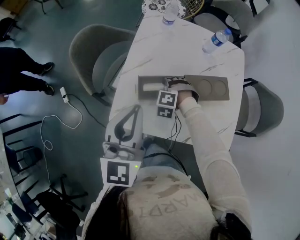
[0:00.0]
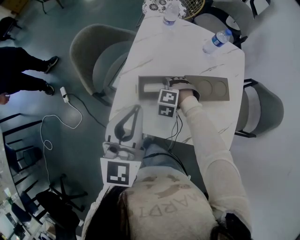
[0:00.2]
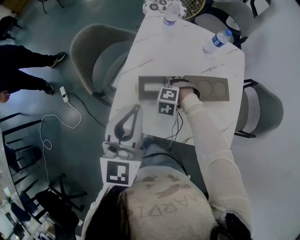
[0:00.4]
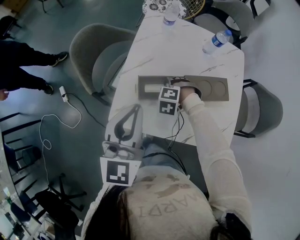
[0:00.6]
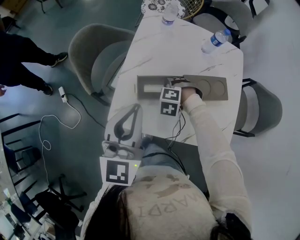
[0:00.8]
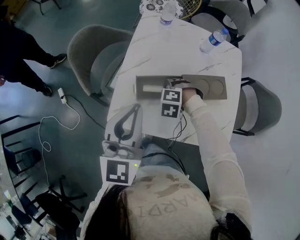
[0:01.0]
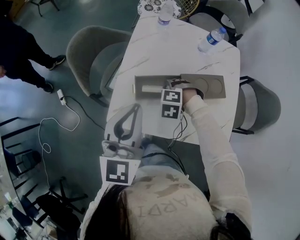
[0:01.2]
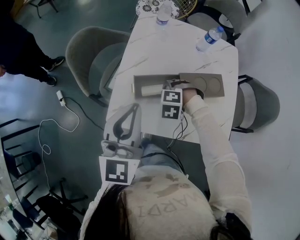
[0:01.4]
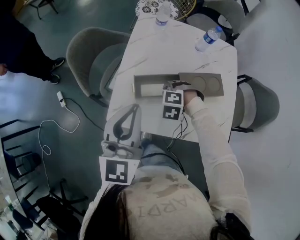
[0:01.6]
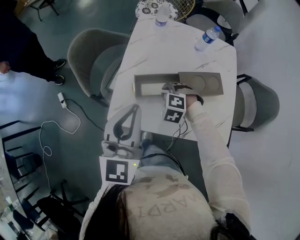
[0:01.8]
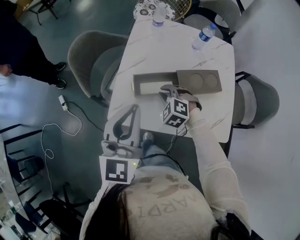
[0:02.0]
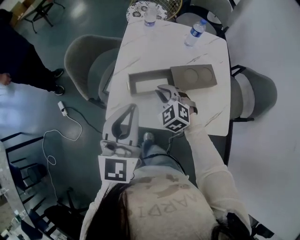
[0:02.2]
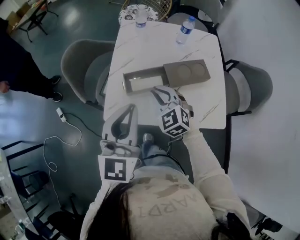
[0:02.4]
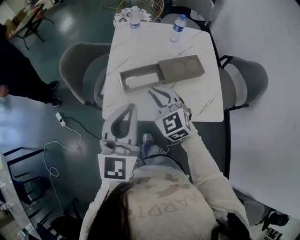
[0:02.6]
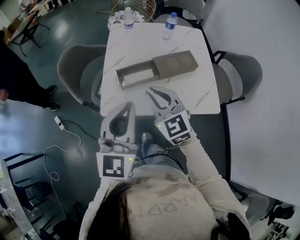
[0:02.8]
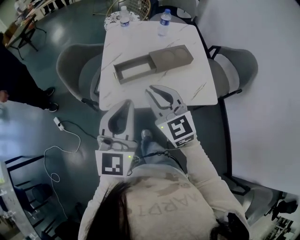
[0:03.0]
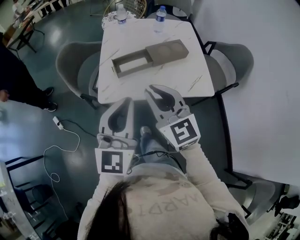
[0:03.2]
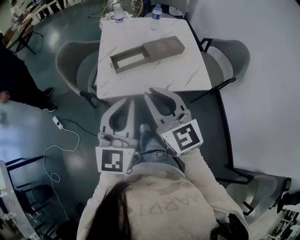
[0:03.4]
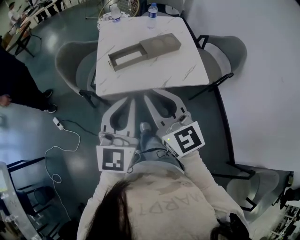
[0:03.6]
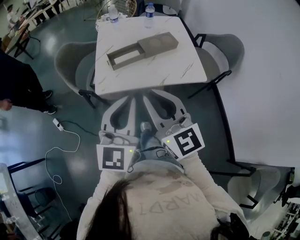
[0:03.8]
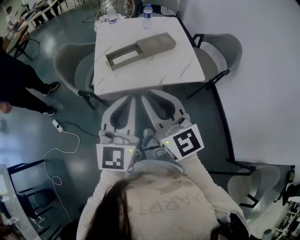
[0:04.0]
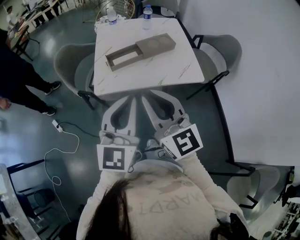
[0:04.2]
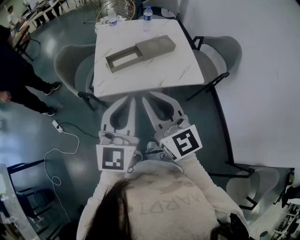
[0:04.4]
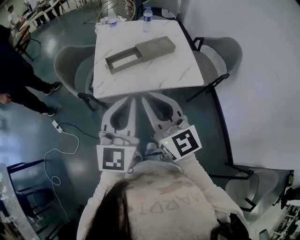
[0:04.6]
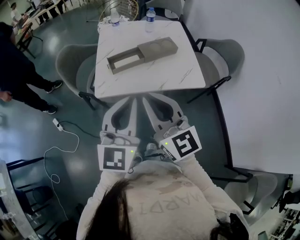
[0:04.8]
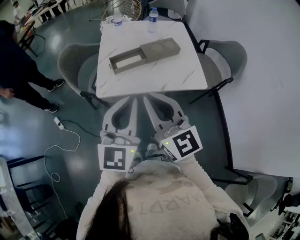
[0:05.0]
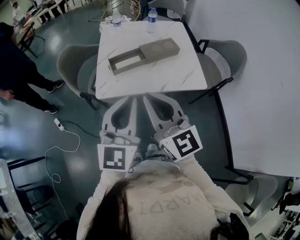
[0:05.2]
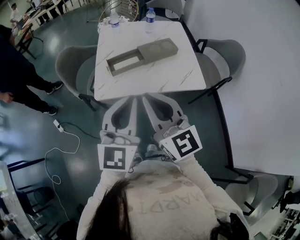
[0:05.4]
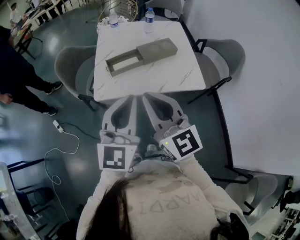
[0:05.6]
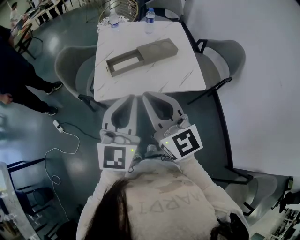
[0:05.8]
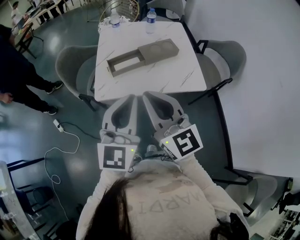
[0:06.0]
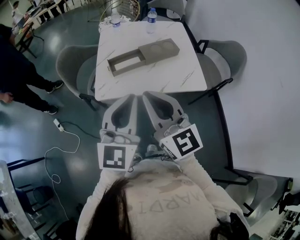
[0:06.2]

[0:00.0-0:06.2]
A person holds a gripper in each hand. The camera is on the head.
0.0 to 1.6 s: The right gripper changes place by approximately 5 cm.
1.6 to 3.2 s: The left gripper travels backward by roughly 20 cm. The right gripper moves backward and upward, approximately 35 cm, and tilts its fingers about 70 degrees upward.
3.2 to 4.6 s: The grippers both shift backward by approximately 10 cm.
4.6 to 6.2 s: The grippers make only small movements.

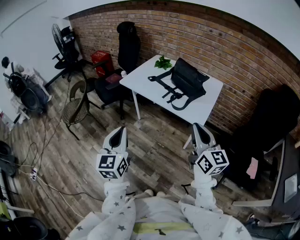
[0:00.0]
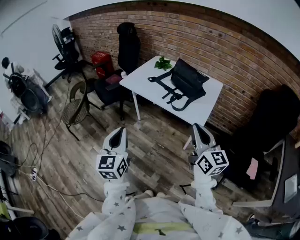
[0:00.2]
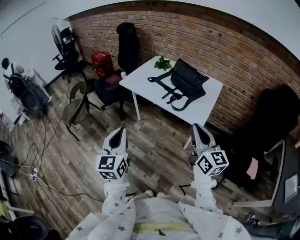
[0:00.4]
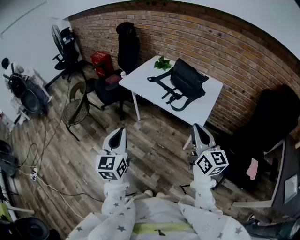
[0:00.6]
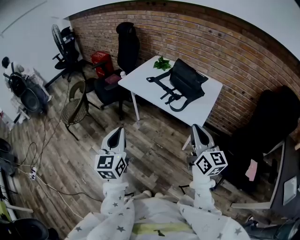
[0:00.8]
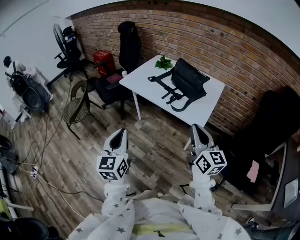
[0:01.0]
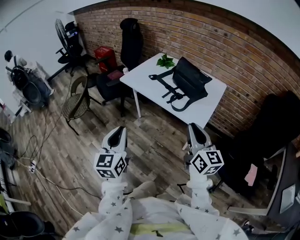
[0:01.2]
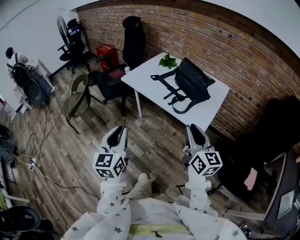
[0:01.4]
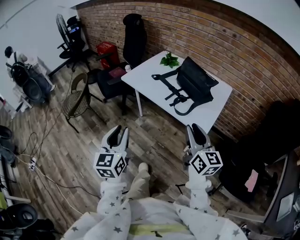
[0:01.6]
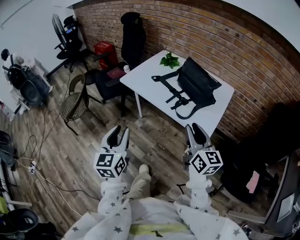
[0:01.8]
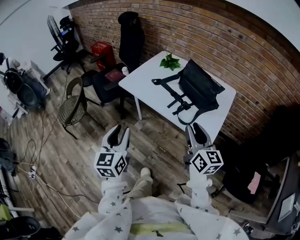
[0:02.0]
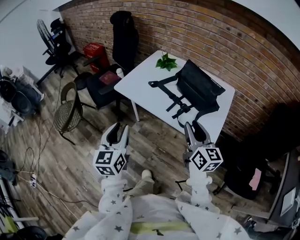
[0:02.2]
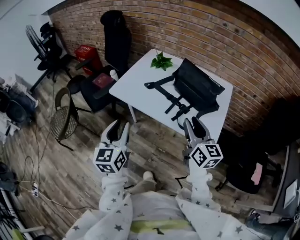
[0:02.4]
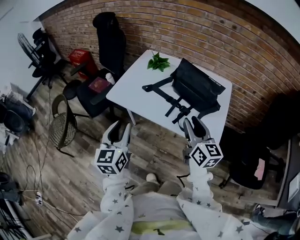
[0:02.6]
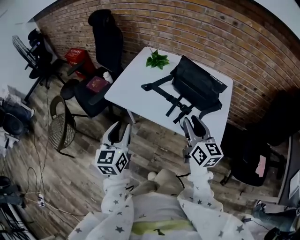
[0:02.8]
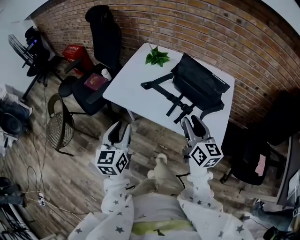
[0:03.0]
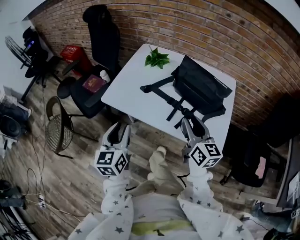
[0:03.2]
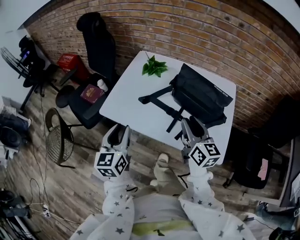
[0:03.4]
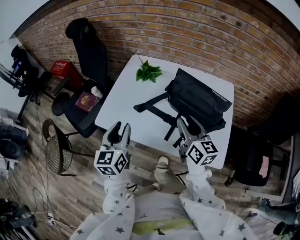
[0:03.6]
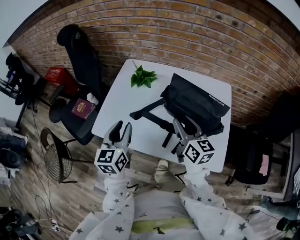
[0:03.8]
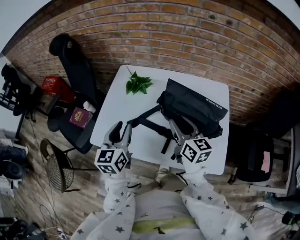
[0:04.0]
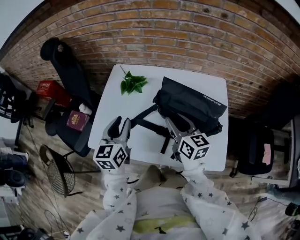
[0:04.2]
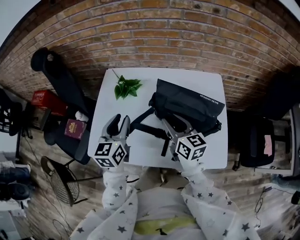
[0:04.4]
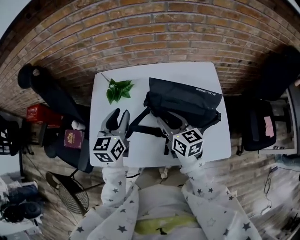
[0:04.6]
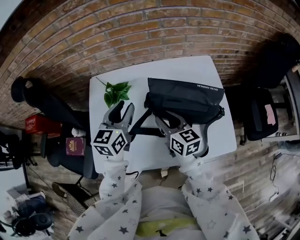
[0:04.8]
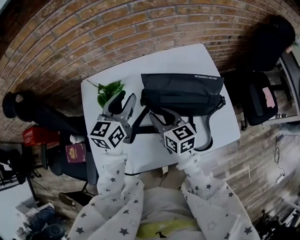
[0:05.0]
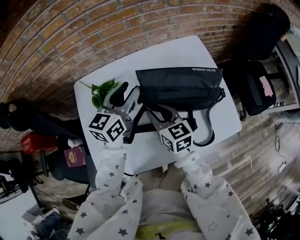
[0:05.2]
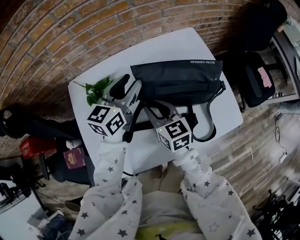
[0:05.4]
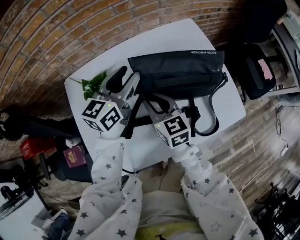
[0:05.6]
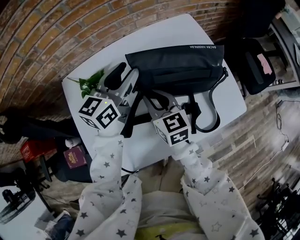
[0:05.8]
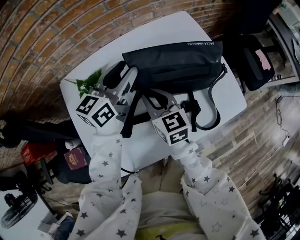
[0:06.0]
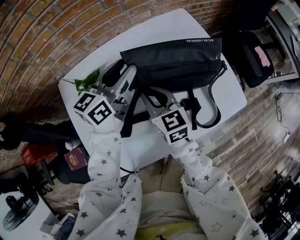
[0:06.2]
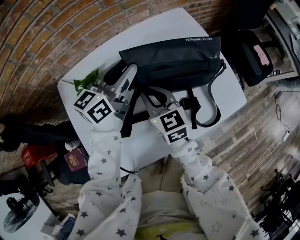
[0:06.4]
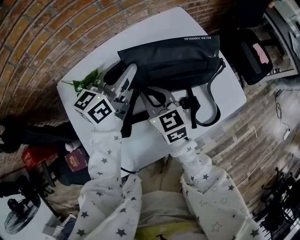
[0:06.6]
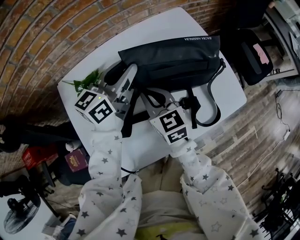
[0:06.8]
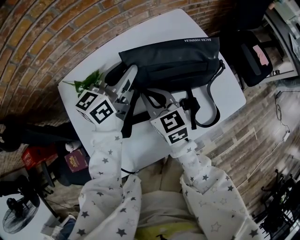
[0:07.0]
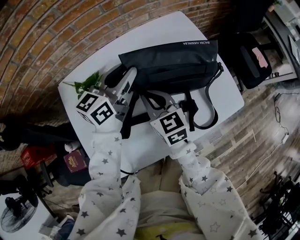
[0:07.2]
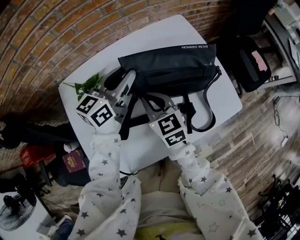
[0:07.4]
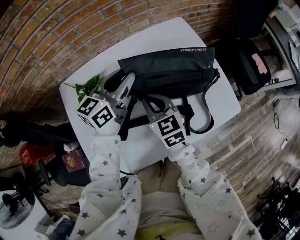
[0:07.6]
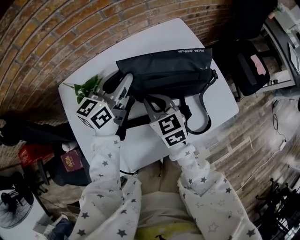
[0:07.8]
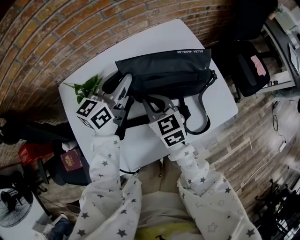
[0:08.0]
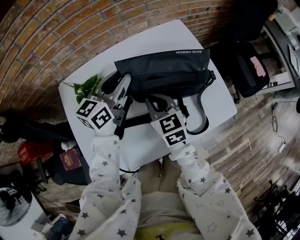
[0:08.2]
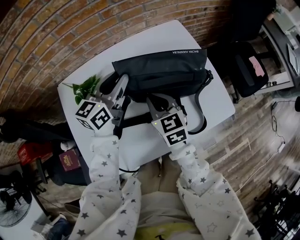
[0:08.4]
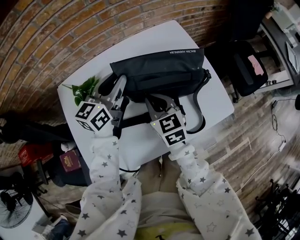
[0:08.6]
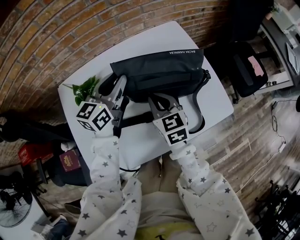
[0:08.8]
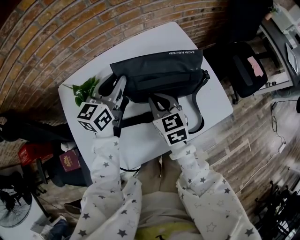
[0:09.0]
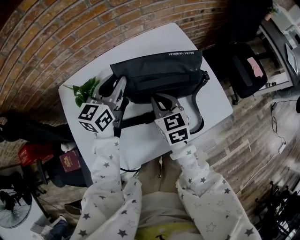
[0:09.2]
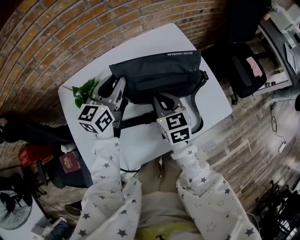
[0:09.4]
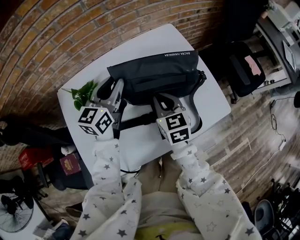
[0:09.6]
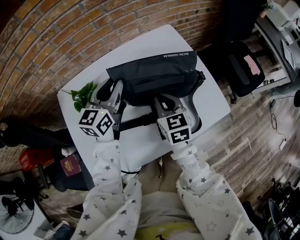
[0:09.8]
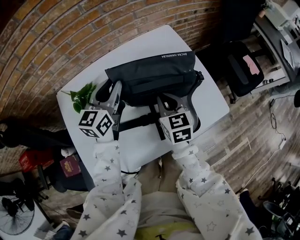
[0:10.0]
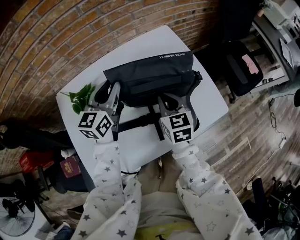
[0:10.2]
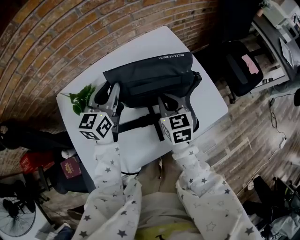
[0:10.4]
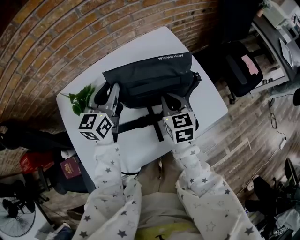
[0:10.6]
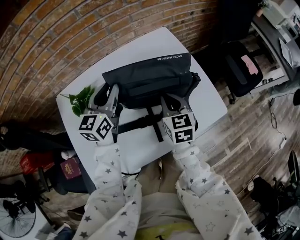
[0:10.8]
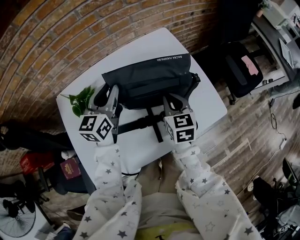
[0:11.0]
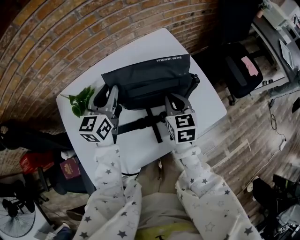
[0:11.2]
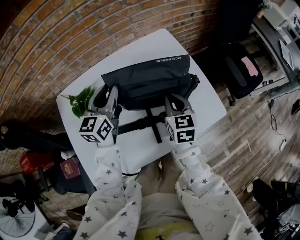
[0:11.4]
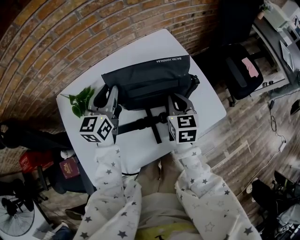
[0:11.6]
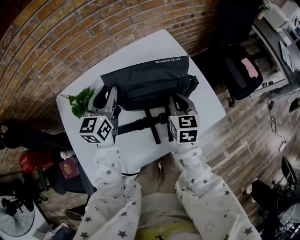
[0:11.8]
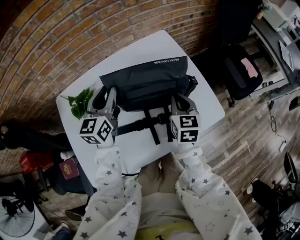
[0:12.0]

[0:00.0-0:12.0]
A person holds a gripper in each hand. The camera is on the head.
0.0 to 1.6 s: The two grippers go some 10 cm forward. The left gripper opens up, while the right gripper opens its fingers.
1.6 to 3.0 s: The two grippers go roughly 25 cm forward.
3.0 to 4.4 s: The two grippers go roughly 25 cm forward. The left gripper swivels roughly 20 degrees.
4.4 to 6.0 s: The left gripper moves approximately 20 cm, and turns by approximately 50 degrees. The right gripper is displaced downward by approximately 10 cm, and changes its angle by roughly 30 degrees.
6.0 to 7.6 s: Both grippers move to the right, roughly 5 cm.
7.6 to 9.0 s: The grippers stay close to where they were, moving slightly.
9.0 to 10.4 s: The right gripper moves to the right, roughly 5 cm.
10.4 to 12.0 s: The right gripper goes about 10 cm to the right.

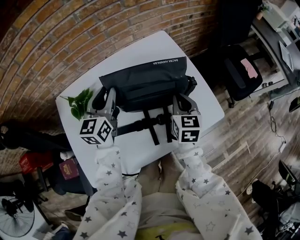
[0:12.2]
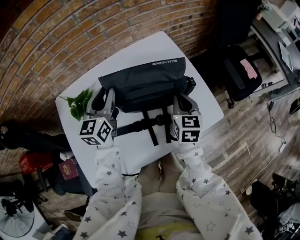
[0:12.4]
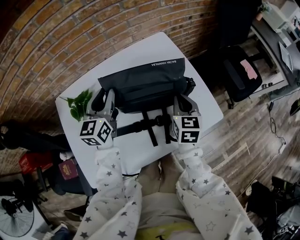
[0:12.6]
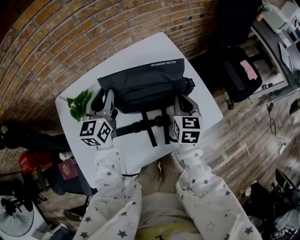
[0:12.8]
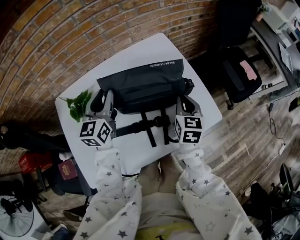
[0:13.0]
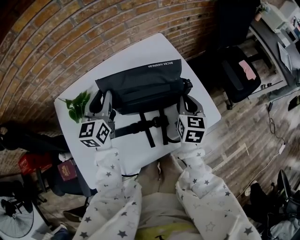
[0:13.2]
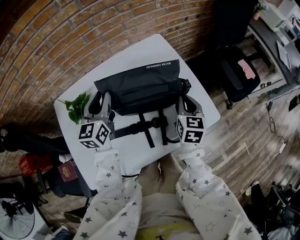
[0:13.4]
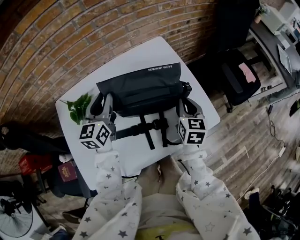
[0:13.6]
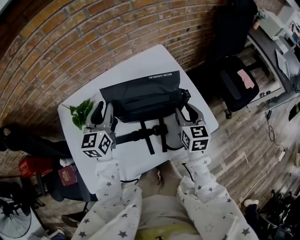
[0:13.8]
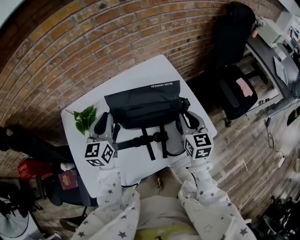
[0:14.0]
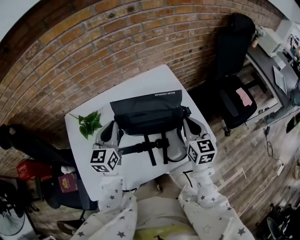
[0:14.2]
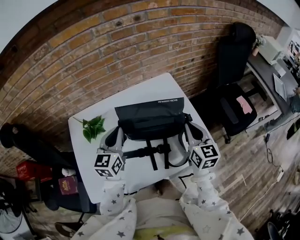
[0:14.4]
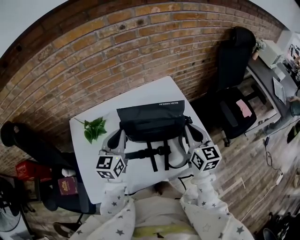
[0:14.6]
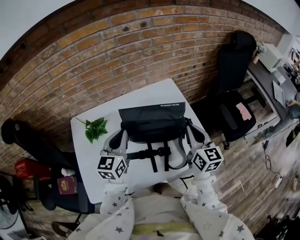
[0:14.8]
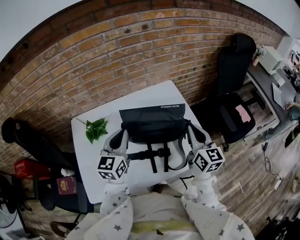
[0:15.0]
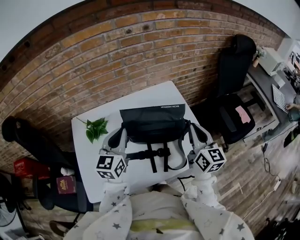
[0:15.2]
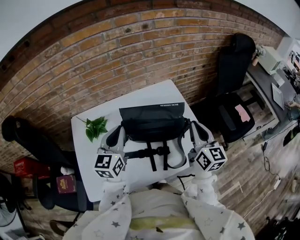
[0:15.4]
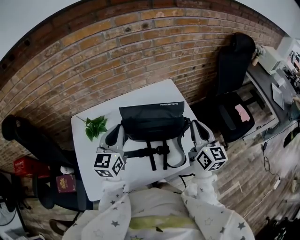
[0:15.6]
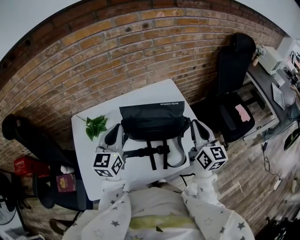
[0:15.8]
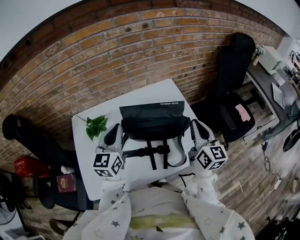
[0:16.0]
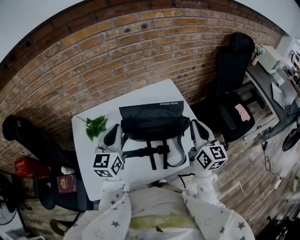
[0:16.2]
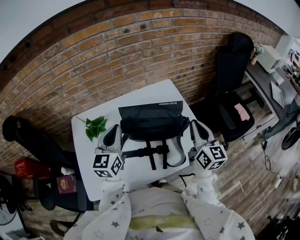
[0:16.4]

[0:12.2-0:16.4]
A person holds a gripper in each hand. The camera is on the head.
12.2 to 13.6 s: The grippers make only small movements.
13.6 to 15.0 s: The right gripper moves upward, some 15 cm, changes its angle by approximately 30 degrees, and opens, then closes once more. The left gripper shifts about 10 cm backward and upward, and closes.
15.0 to 16.4 s: The grippers stay close to where they were, moving slightly.

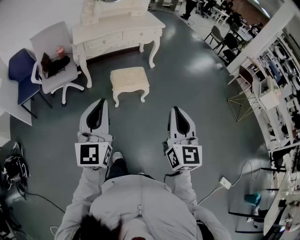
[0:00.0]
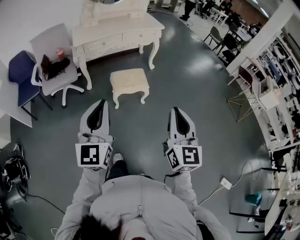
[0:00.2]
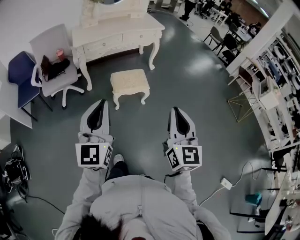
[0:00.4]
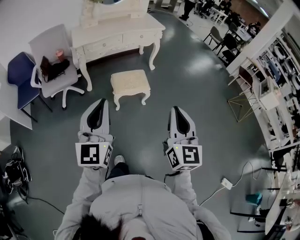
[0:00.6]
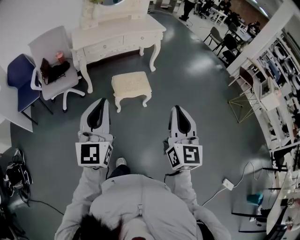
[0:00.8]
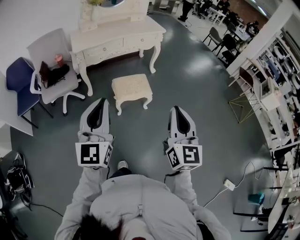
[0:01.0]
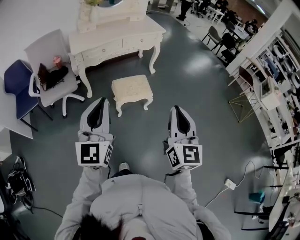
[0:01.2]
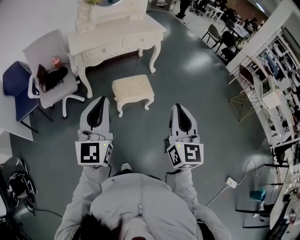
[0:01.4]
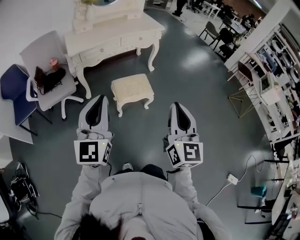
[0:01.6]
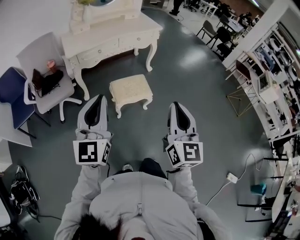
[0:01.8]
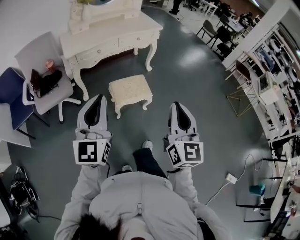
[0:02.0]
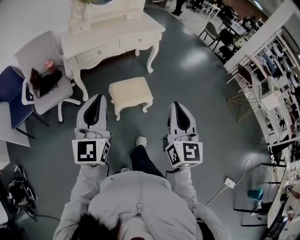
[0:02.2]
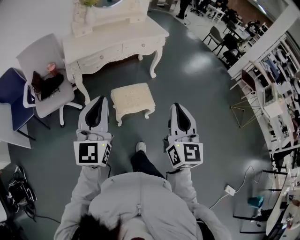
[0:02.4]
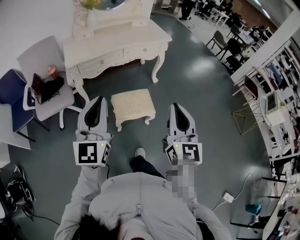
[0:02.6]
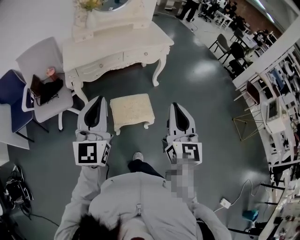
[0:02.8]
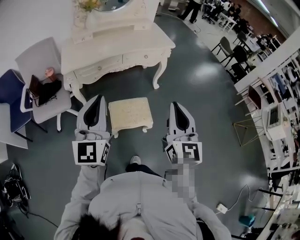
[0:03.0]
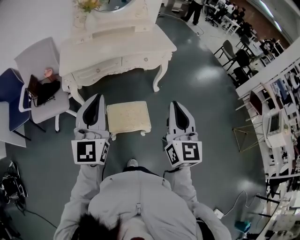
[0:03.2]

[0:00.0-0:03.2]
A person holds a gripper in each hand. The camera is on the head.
0.0 to 1.6 s: The two grippers go roughly 15 cm forward and to the left.
1.6 to 3.2 s: The grippers both shift forward by roughly 30 cm.
